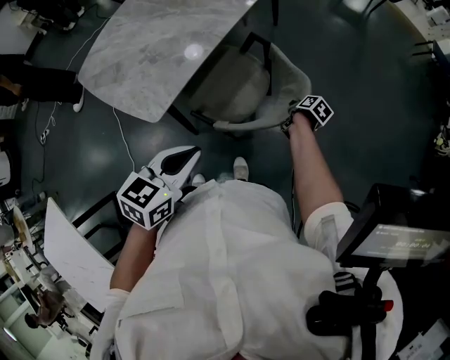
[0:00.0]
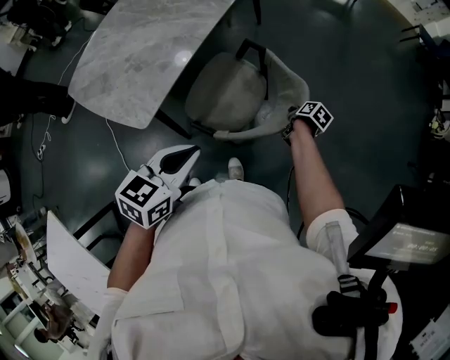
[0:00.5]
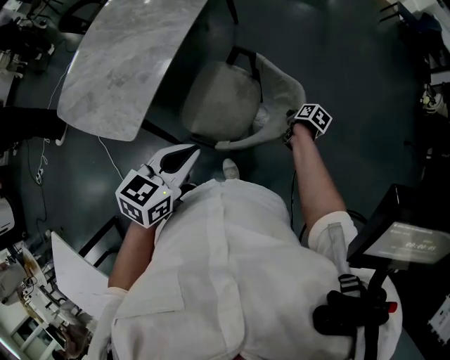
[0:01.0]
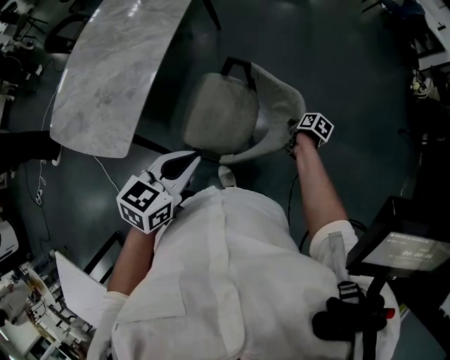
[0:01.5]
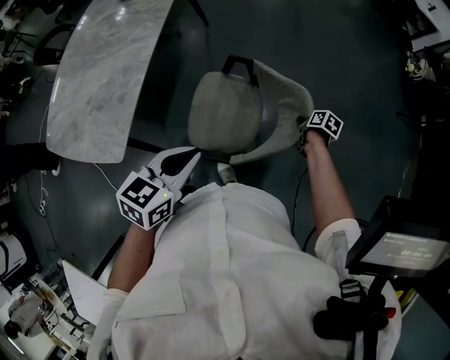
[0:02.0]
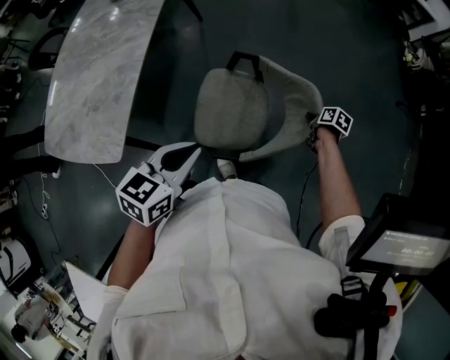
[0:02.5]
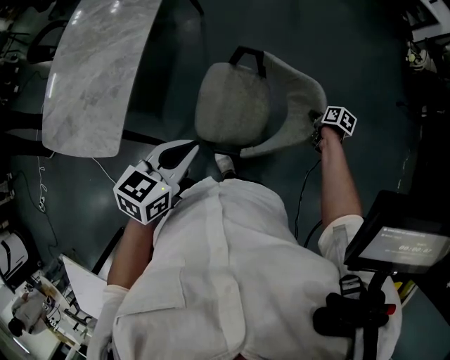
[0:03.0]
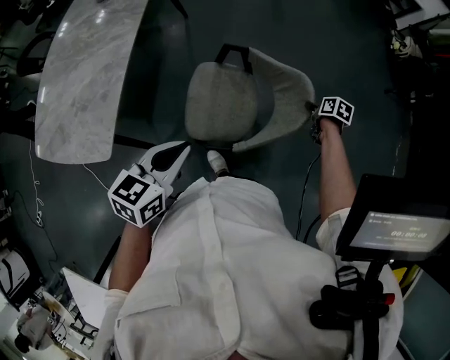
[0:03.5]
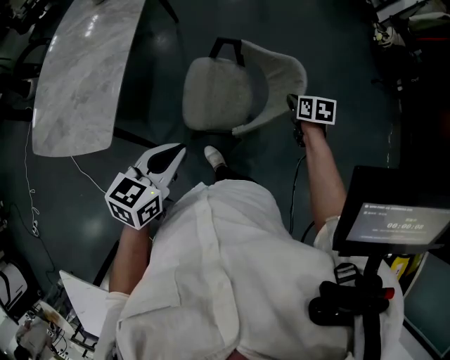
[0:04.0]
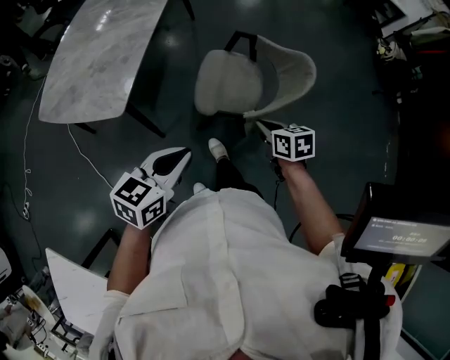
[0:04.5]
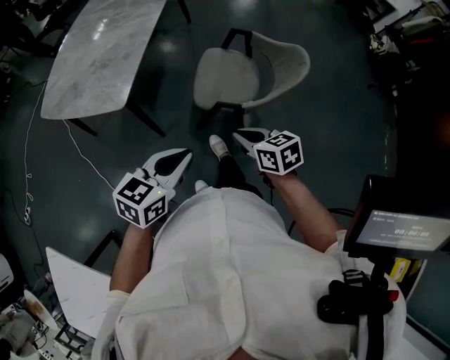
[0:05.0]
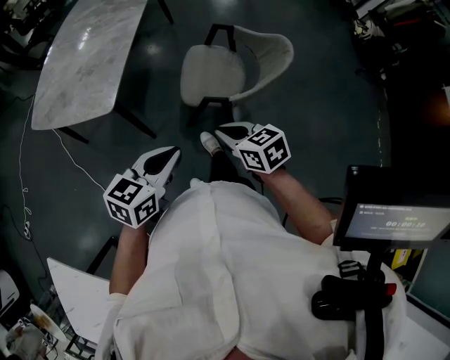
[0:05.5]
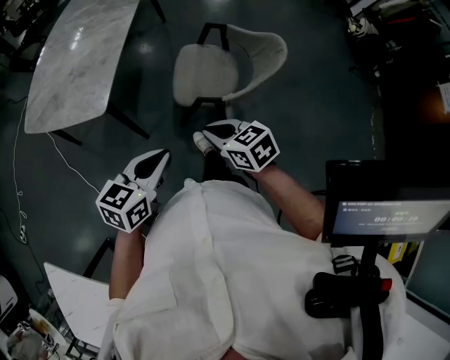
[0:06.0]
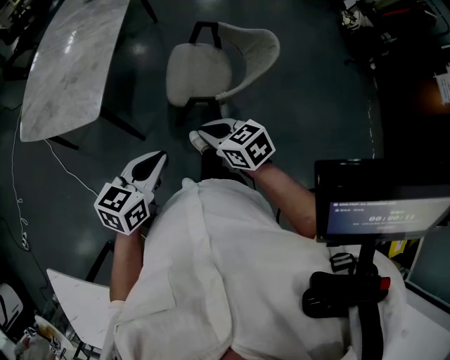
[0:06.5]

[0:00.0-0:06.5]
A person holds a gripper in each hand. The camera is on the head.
0:00.0 to 0:02.0: The left gripper shifts about 10 cm to the right and forward, and rotates about 20 degrees. Meanwhile the right gripper heads to the right, covering about 25 cm.
0:02.0 to 0:04.5: The right gripper travels backward, upward and to the left by some 35 cm, and twists approximately 40 degrees counterclockwise, seen from behind. Meanwhile the left gripper is displaced backward by approximately 20 cm.
0:04.5 to 0:06.5: The left gripper ends up some 5 cm from where it was; the right gripper travels to the left, backward and upward by roughly 15 cm, and turns by approximately 20 degrees.

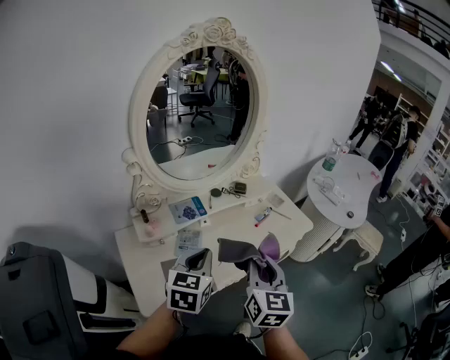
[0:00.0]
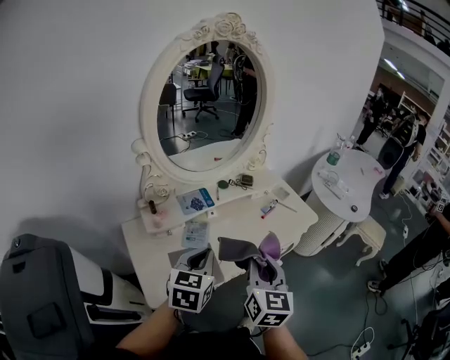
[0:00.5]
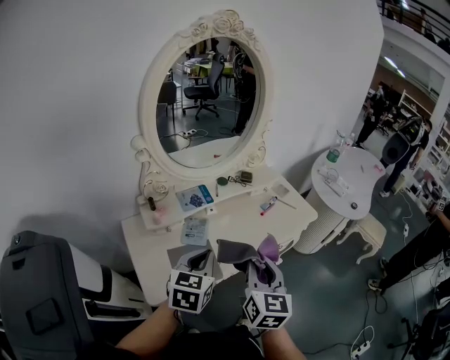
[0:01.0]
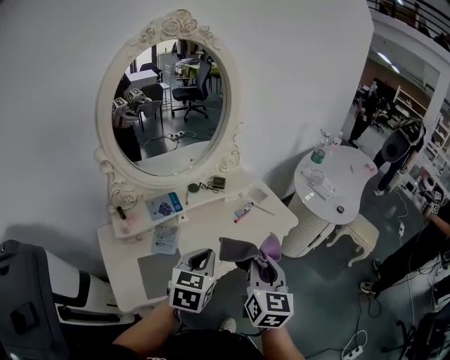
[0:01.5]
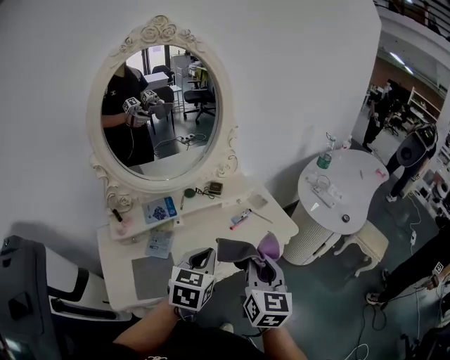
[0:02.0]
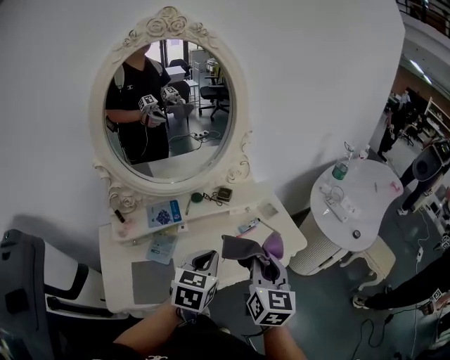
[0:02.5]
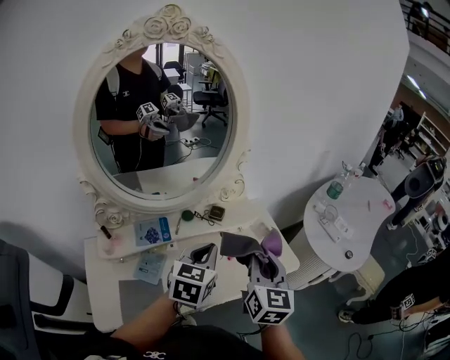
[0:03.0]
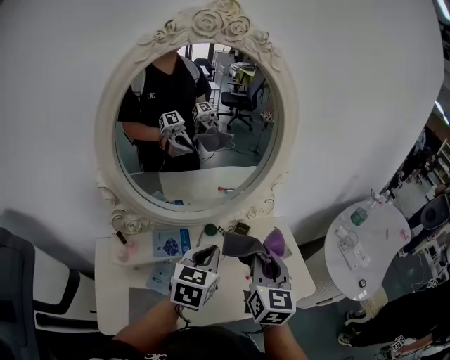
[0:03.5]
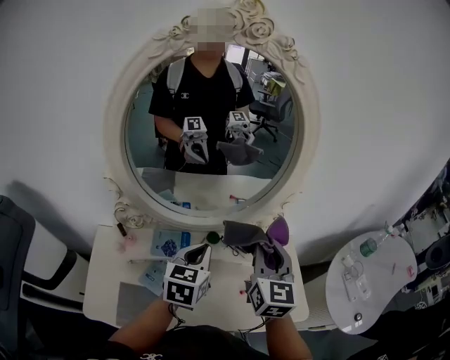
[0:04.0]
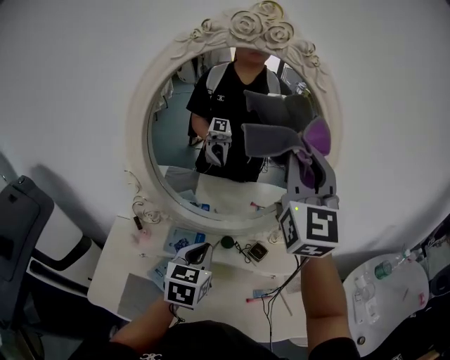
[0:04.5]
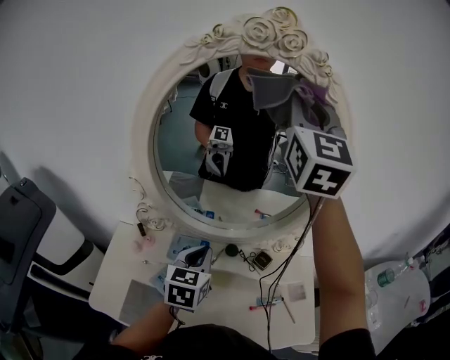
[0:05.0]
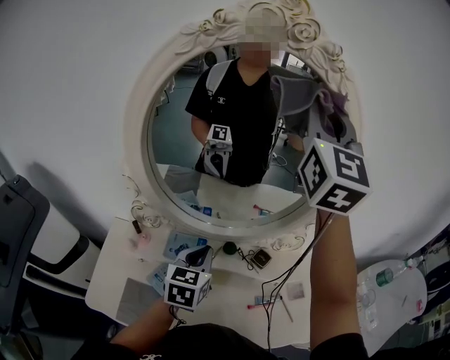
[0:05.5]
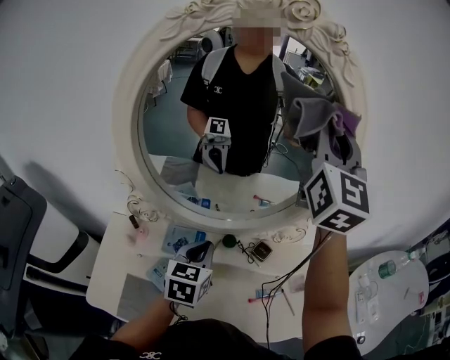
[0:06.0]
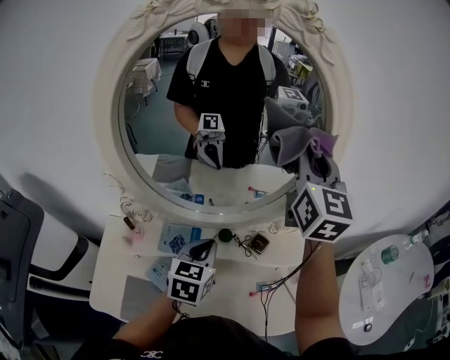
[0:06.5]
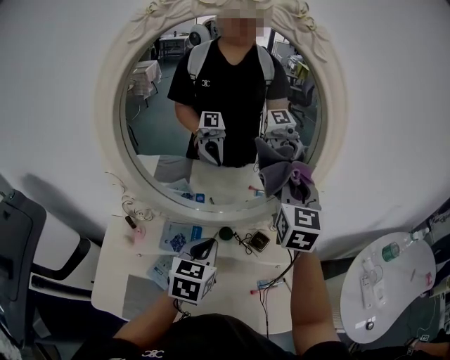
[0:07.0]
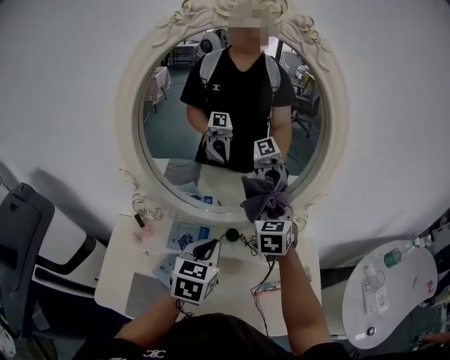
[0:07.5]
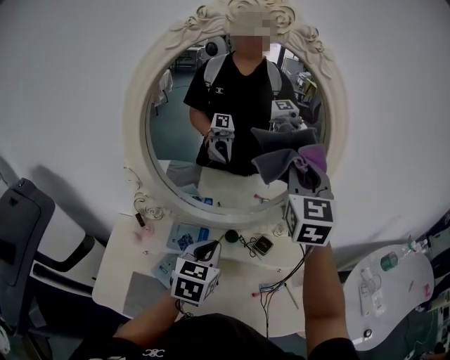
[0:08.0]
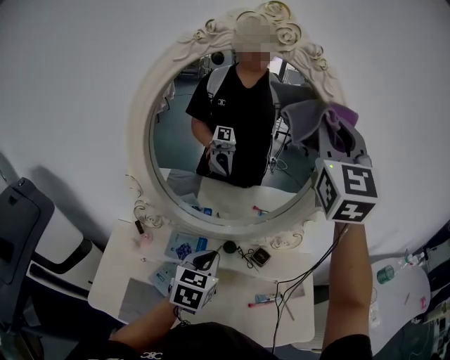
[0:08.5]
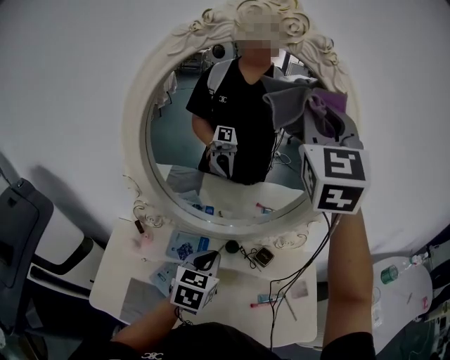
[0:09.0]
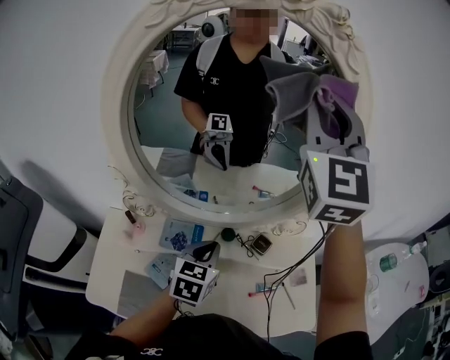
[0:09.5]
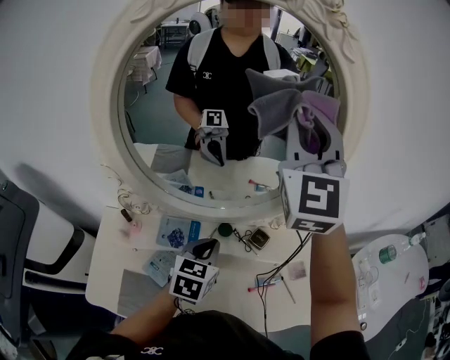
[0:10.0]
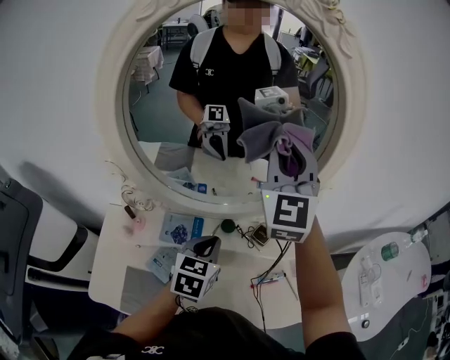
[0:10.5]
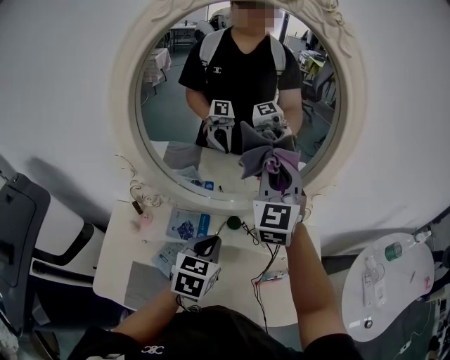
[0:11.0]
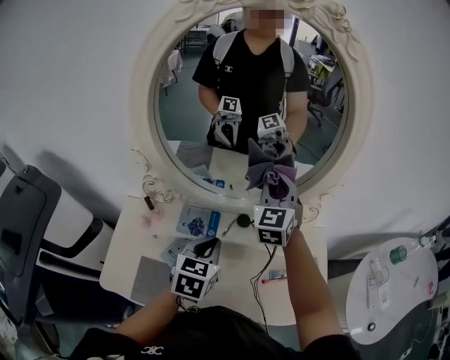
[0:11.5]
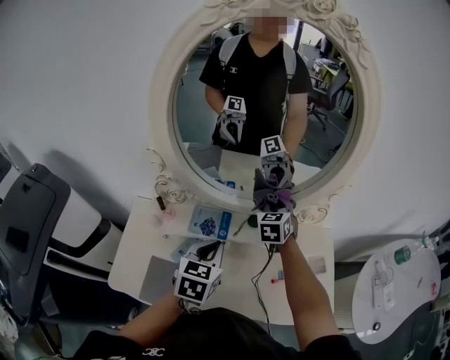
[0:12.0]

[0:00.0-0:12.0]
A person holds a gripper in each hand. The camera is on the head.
0:00.0 to 0:02.0: The right gripper shifts some 15 cm to the right and forward. Meanwhile the left gripper heads to the right, covering some 15 cm.
0:02.0 to 0:04.0: The left gripper is displaced forward and to the left by some 25 cm, and changes its angle by roughly 30 degrees; the right gripper is displaced forward by approximately 30 cm, and rotates about 20 degrees.
0:04.0 to 0:06.0: The right gripper travels upward and forward by some 30 cm, and rotates about 20 degrees, while the left gripper moves approximately 5 cm.
0:06.0 to 0:08.0: The right gripper goes approximately 10 cm downward.
0:08.0 to 0:10.0: The right gripper goes roughly 10 cm upward; the left gripper changes place by roughly 5 cm.
0:10.0 to 0:12.0: The right gripper travels downward by roughly 40 cm, and tips its fingers downward by about 40 degrees, while the left gripper is displaced backward and to the left by roughly 10 cm.

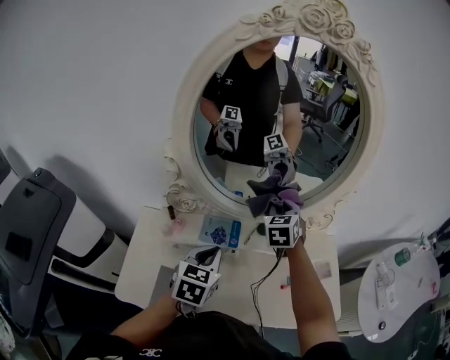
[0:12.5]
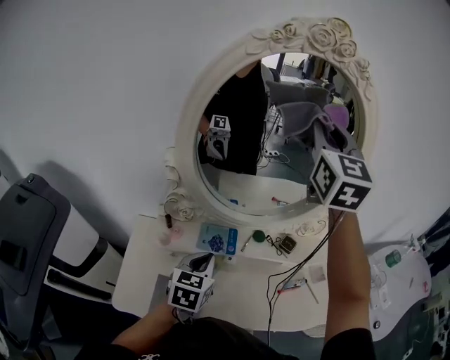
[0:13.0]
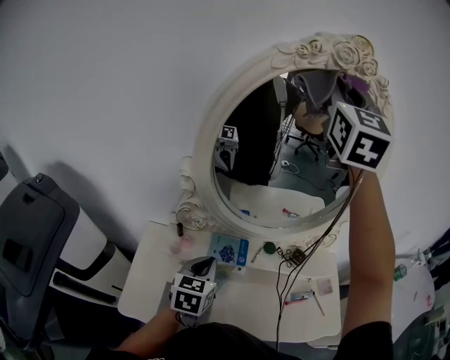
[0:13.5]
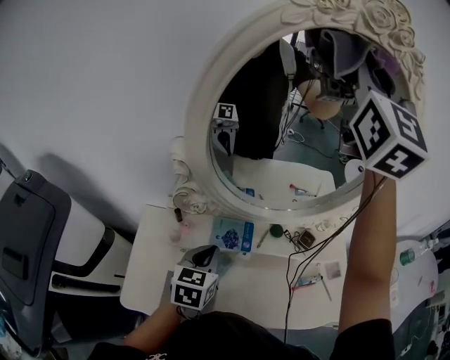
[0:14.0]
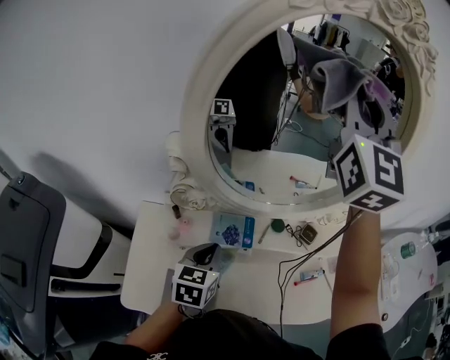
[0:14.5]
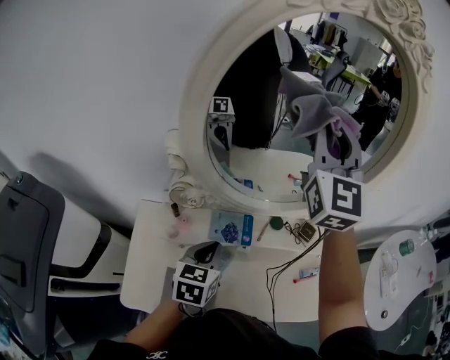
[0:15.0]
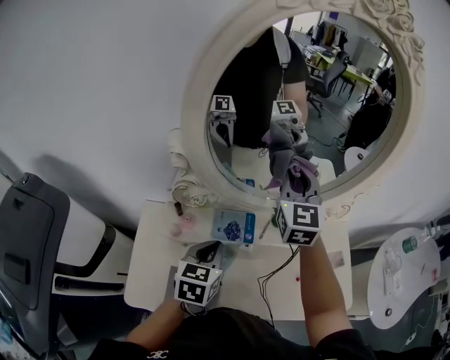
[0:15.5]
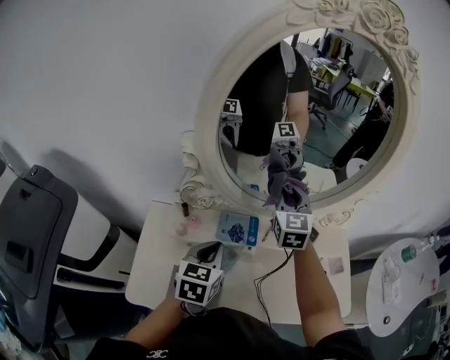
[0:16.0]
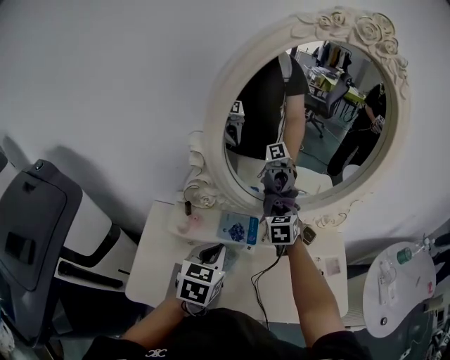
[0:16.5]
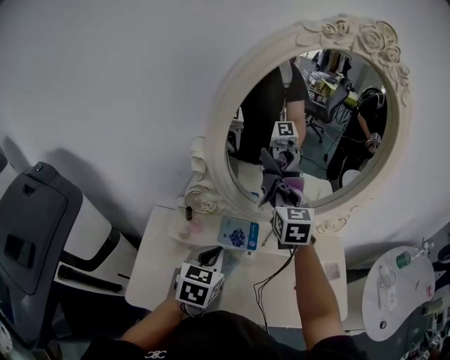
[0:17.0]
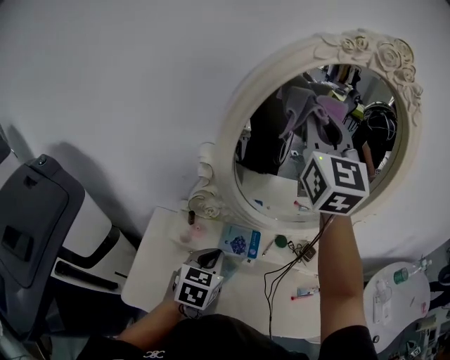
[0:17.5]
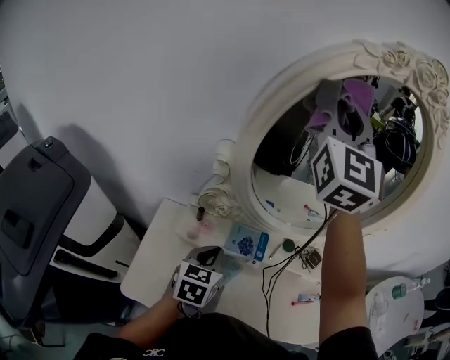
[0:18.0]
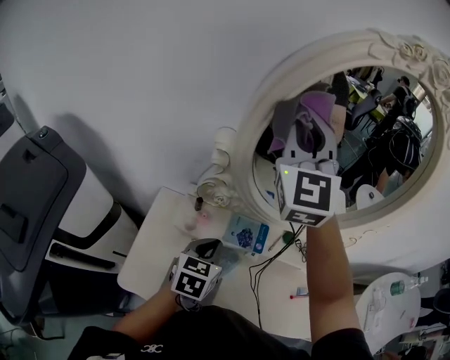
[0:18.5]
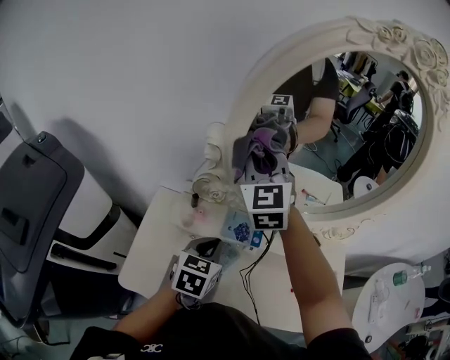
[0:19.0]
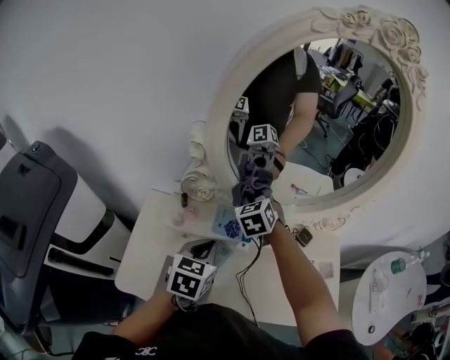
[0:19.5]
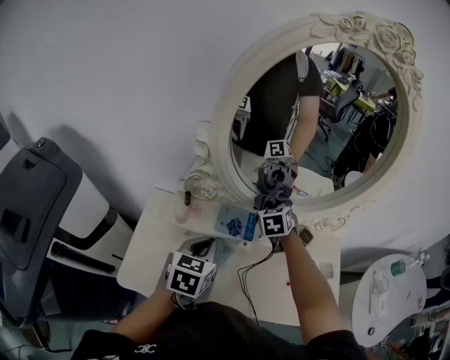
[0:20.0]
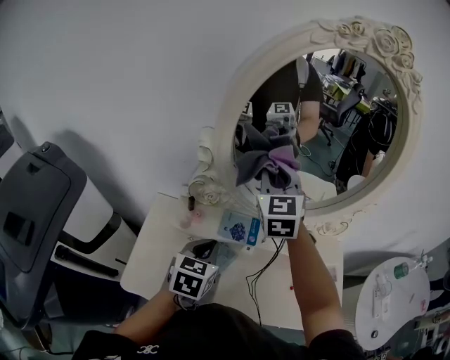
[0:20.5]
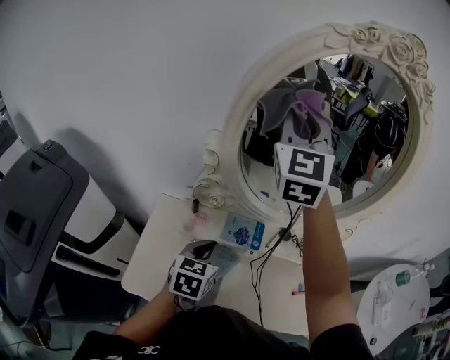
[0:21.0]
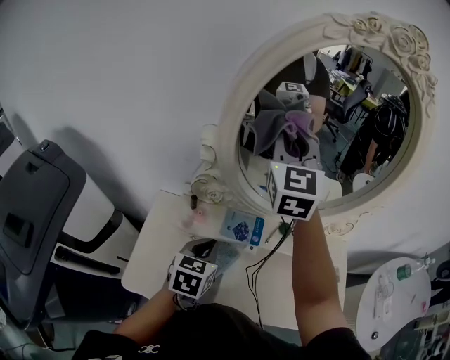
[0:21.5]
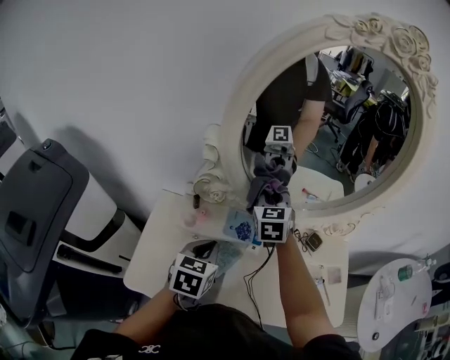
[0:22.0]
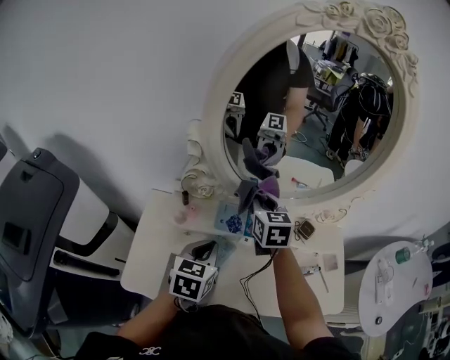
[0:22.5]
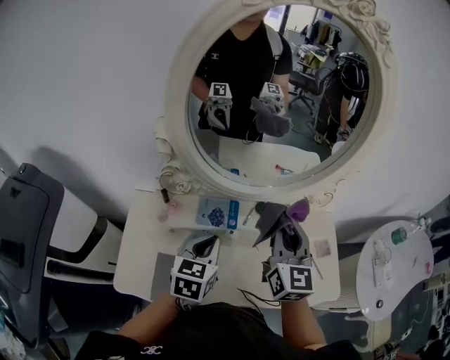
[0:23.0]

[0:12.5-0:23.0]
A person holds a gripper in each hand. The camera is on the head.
0:12.5 to 0:14.5: The left gripper moves to the left, roughly 5 cm. The right gripper is displaced upward by some 40 cm, and points its fingers approximately 50 degrees further upward.
0:14.5 to 0:16.5: The right gripper heads downward, covering roughly 50 cm, and tips its fingers downward by approximately 60 degrees.
0:16.5 to 0:19.0: The right gripper travels upward and to the left by approximately 30 cm, and swivels roughly 40 degrees.
0:19.0 to 0:21.0: The right gripper goes some 15 cm upward and to the right, and changes its angle by roughly 20 degrees.
0:21.0 to 0:23.0: The left gripper is displaced to the right by about 10 cm, while the right gripper is displaced downward, to the right and backward by about 35 cm, and swivels about 30 degrees.
